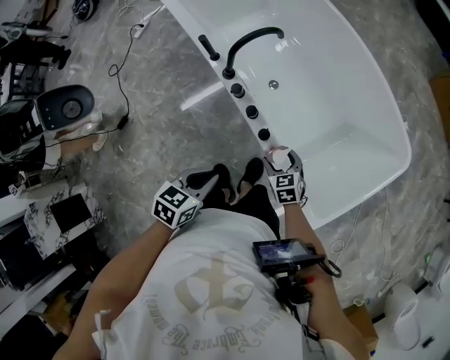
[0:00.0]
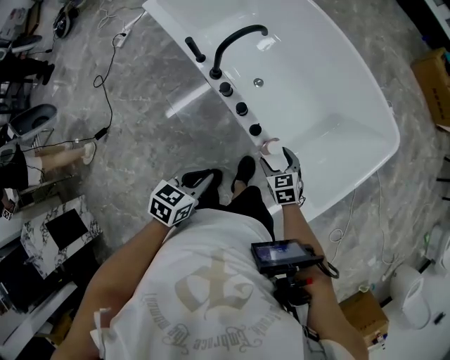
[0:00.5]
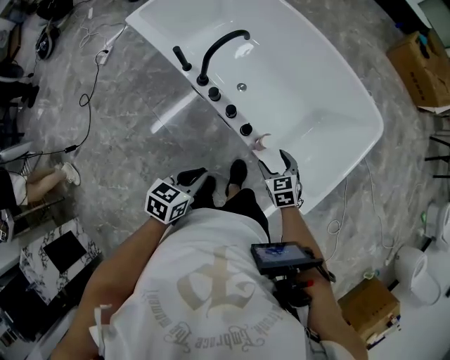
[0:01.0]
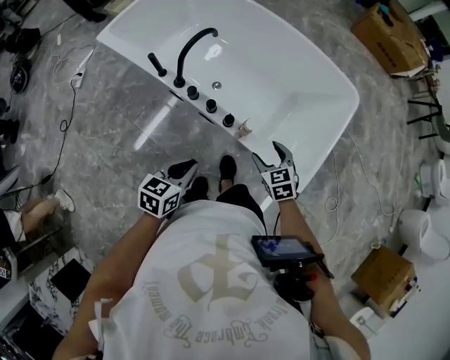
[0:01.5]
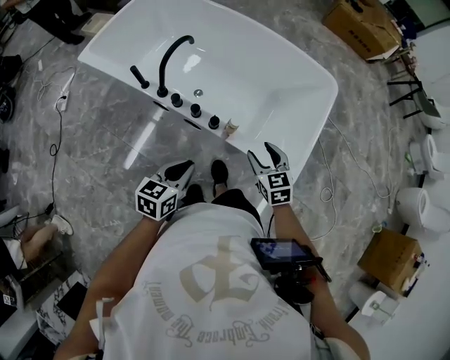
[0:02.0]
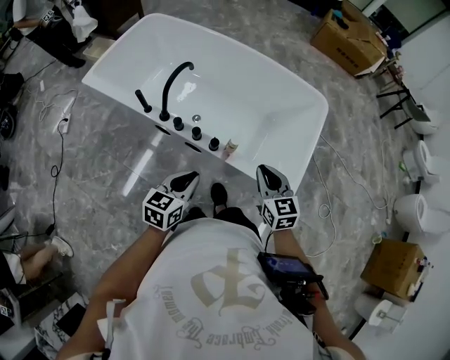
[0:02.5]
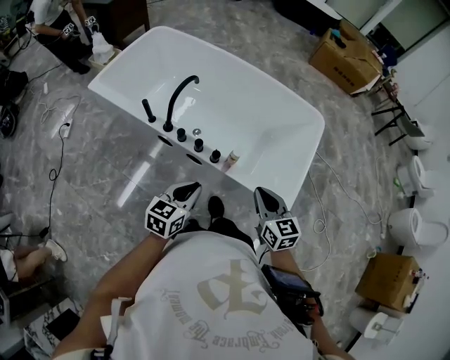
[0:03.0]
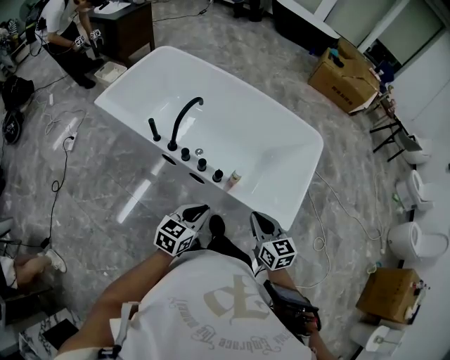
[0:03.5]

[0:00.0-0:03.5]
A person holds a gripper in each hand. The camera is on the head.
0:00.0 to 0:02.0: The left gripper shifts by roughly 5 cm, and changes its angle by approximately 20 degrees. Meanwhile the right gripper shifts roughly 20 cm upward, and changes its angle by approximately 30 degrees.
0:02.0 to 0:03.5: The right gripper goes roughly 15 cm backward and upward, and closes up, while the left gripper moves roughly 5 cm.

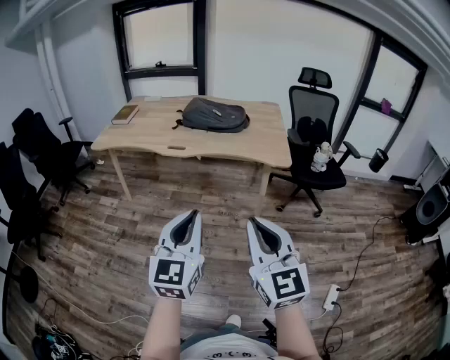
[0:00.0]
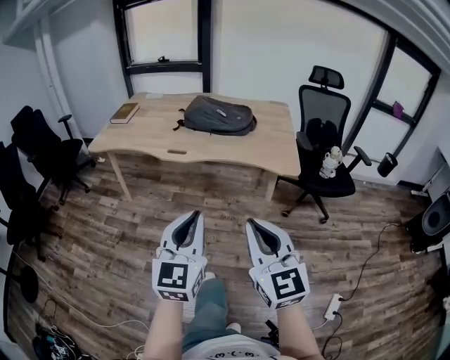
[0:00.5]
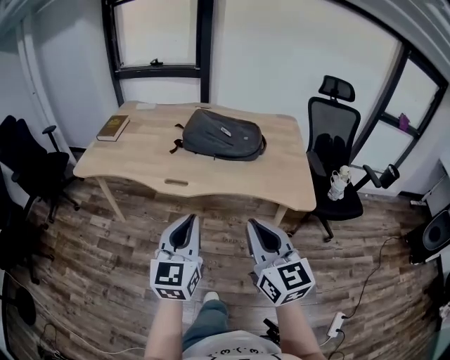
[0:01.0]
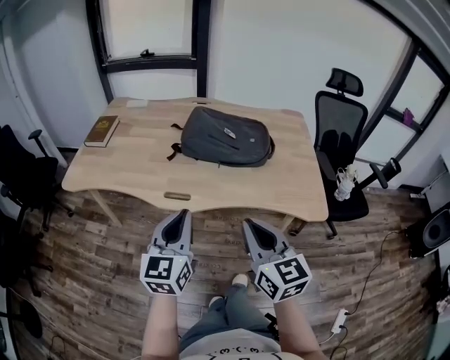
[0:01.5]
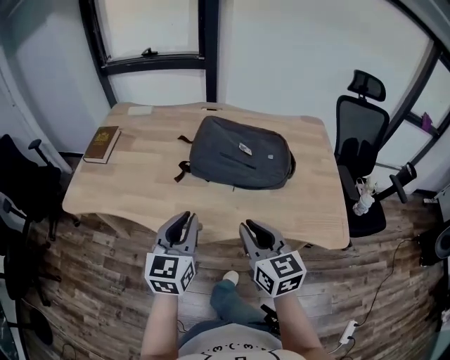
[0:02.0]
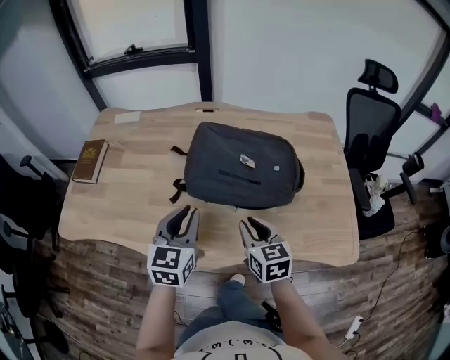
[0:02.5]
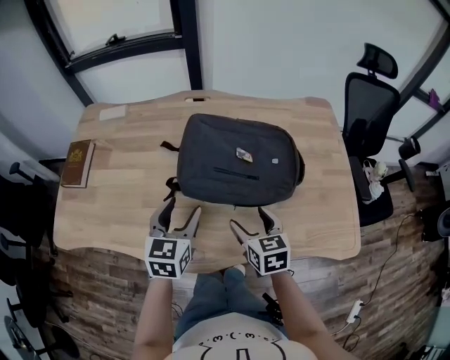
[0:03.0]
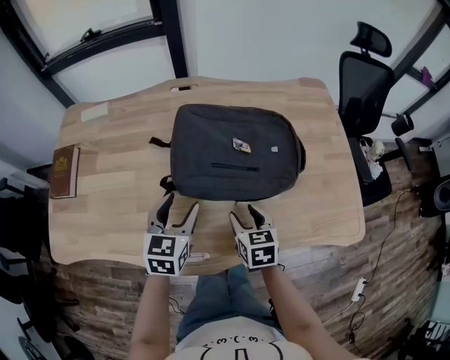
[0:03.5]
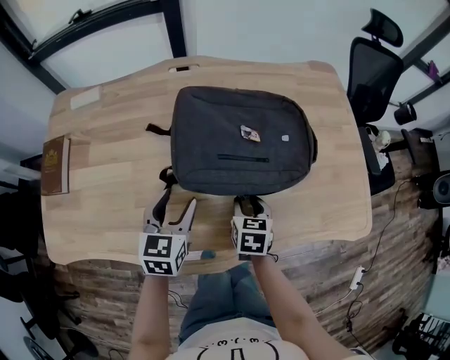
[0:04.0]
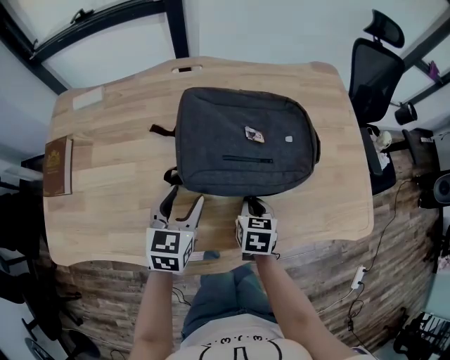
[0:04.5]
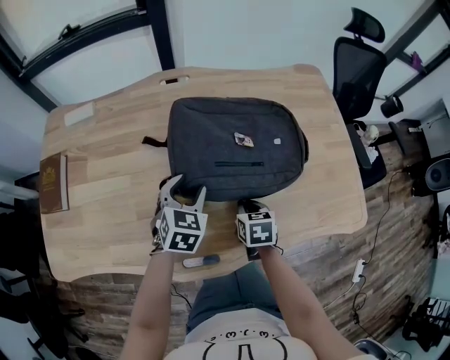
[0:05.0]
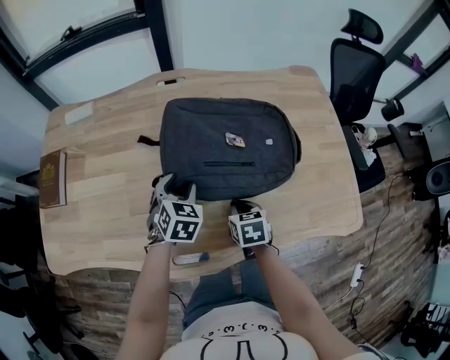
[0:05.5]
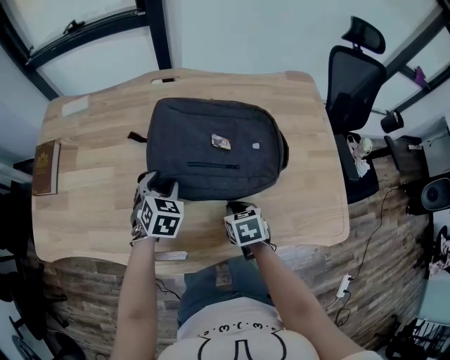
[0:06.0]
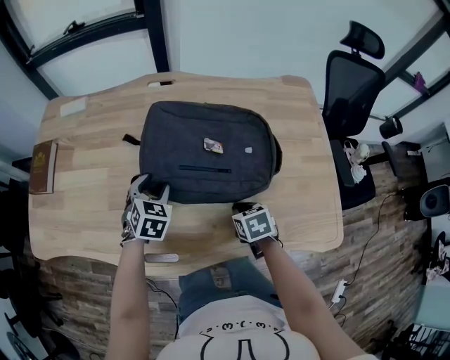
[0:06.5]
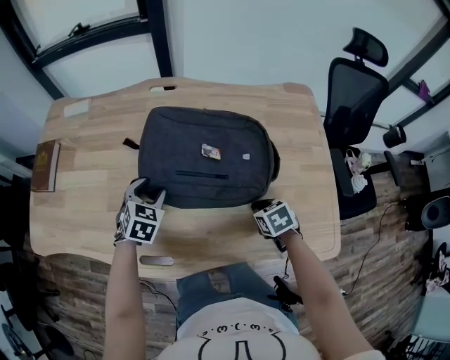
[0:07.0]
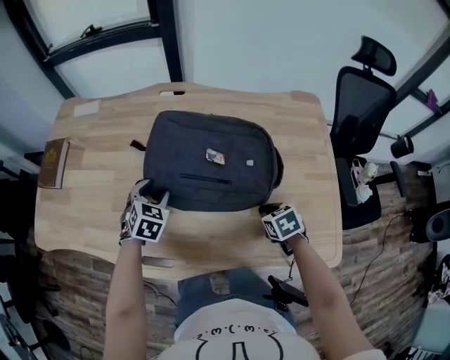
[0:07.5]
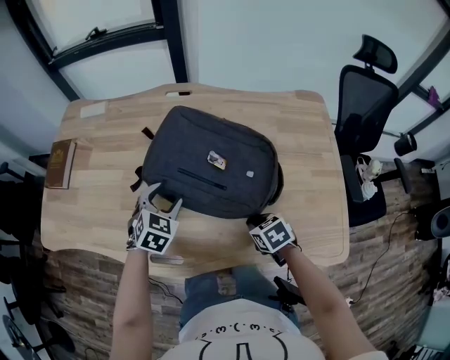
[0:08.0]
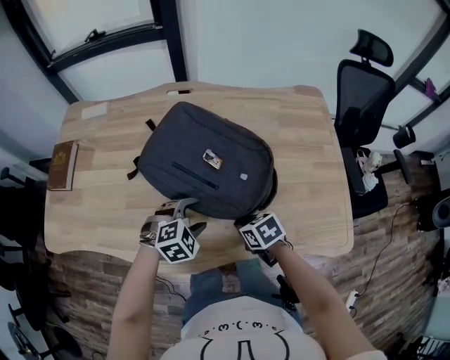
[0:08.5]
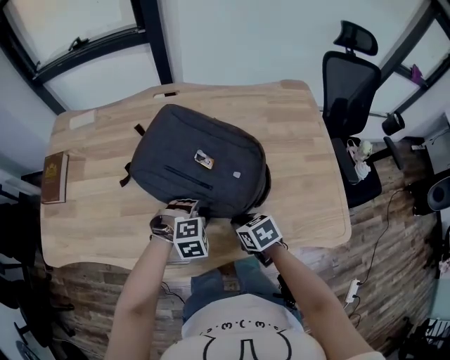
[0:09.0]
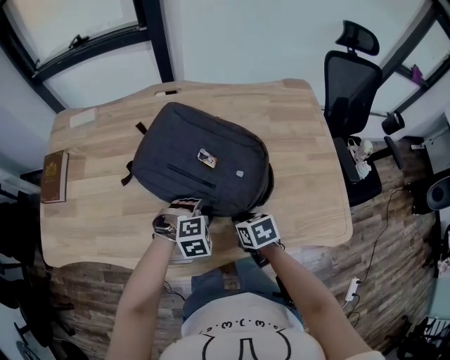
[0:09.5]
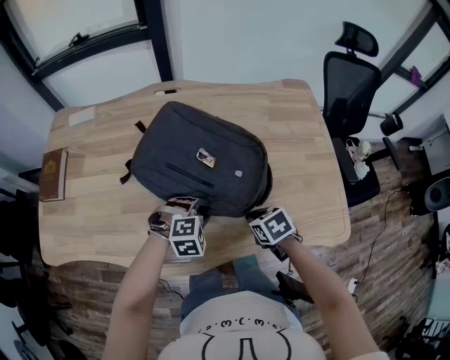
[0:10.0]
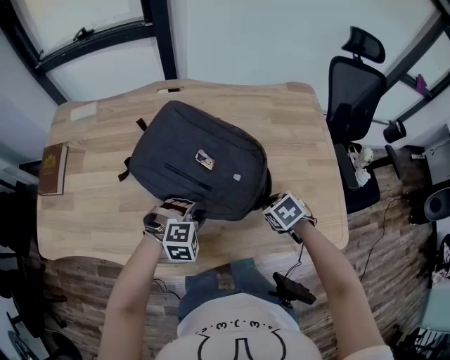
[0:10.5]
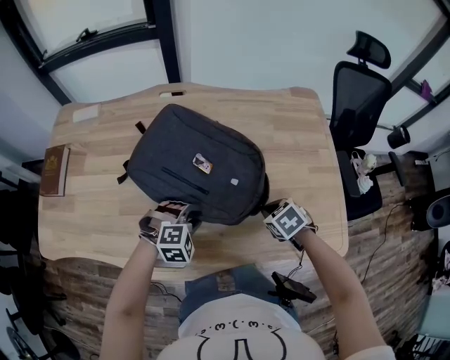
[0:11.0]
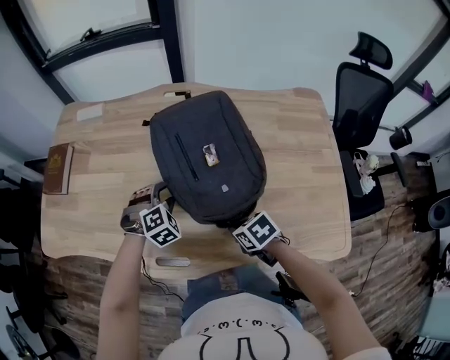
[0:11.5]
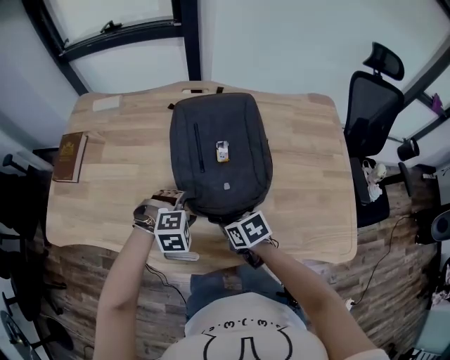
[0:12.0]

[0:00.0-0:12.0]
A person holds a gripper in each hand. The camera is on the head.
0:00.0 to 0:02.0: Both grippers are carried forward, about 60 cm. The right gripper rotates some 20 degrees.
0:02.0 to 0:04.0: The right gripper heads downward and forward, covering some 30 cm, points its fingers some 30 degrees further downward, and opens, then closes once more. Meanwhile the left gripper travels forward and downward by roughly 25 cm, turns by roughly 20 degrees, and opens its fingers.
0:04.0 to 0:06.0: The right gripper swivels some 20 degrees, and closes its fingers. The left gripper heads forward, covering roughly 5 cm, and turns by about 30 degrees.
0:06.0 to 0:08.0: The right gripper shifts some 5 cm to the right, and changes its angle by about 20 degrees.
0:08.0 to 0:10.0: The left gripper shifts some 15 cm to the right, backward and downward, twists approximately 50 degrees clockwise, seen from behind, and closes up.
0:10.0 to 0:12.0: The right gripper shifts by about 15 cm; the left gripper opens.

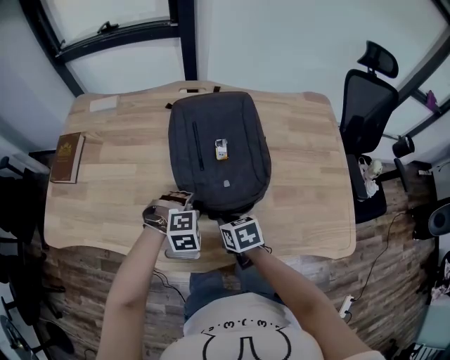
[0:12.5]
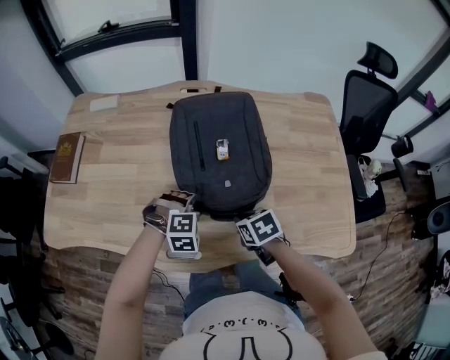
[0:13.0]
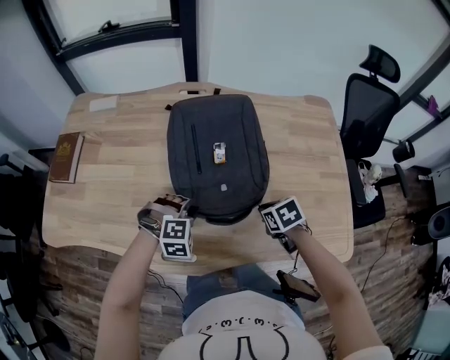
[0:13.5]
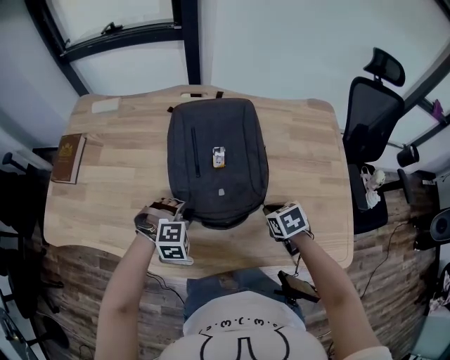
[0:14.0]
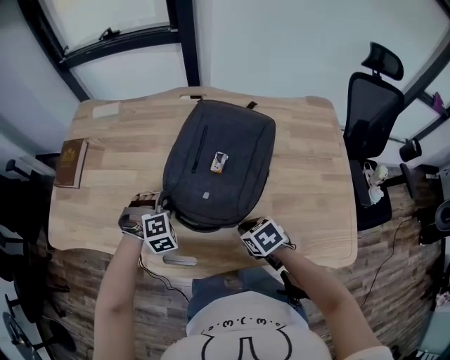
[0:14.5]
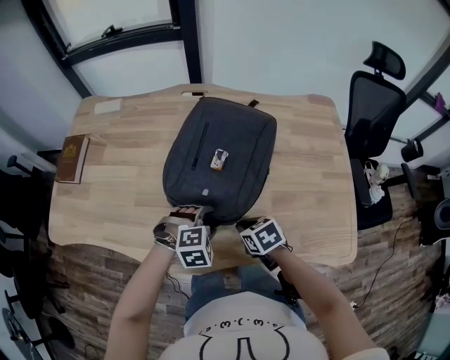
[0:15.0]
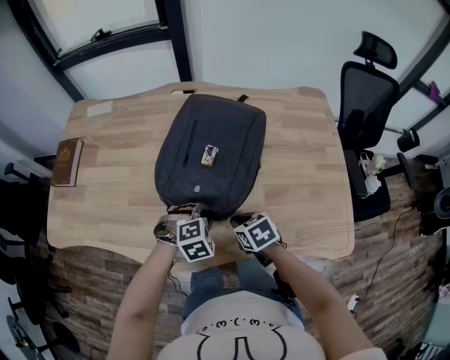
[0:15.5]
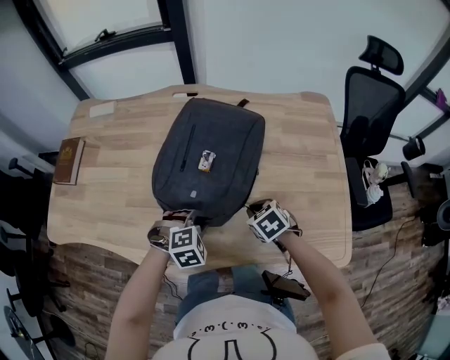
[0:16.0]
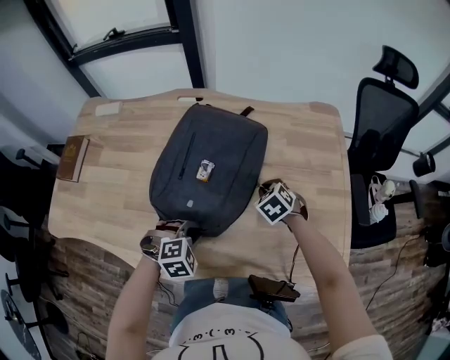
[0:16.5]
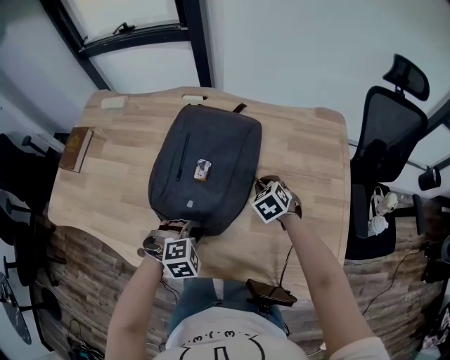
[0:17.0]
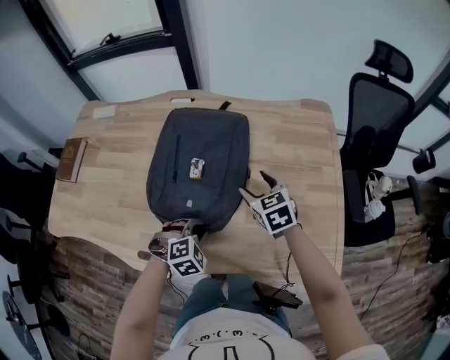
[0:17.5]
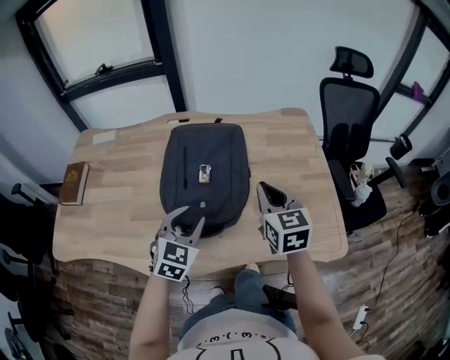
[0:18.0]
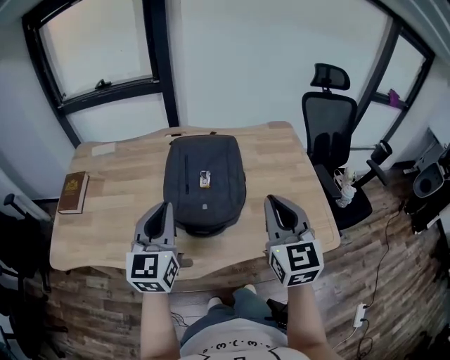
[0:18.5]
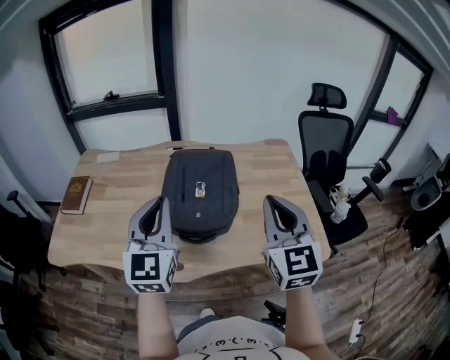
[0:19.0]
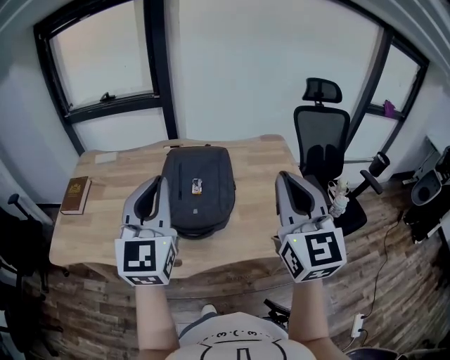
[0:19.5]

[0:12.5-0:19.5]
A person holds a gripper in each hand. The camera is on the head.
0:12.5 to 0:14.5: The left gripper shifts by about 10 cm, while the right gripper swivels about 20 degrees.
0:14.5 to 0:16.0: The left gripper shifts by roughly 15 cm, and opens, then closes again; the right gripper moves some 10 cm.
0:16.0 to 0:17.5: The left gripper moves some 5 cm. Meanwhile the right gripper heads forward and upward, covering about 15 cm, turns by some 30 degrees, and opens its fingers.
0:17.5 to 0:19.5: The left gripper goes some 40 cm upward, tips its fingers upward by approximately 70 degrees, and opens and closes again. The right gripper shifts approximately 50 cm upward and backward, tilts its fingers about 50 degrees upward, and closes.

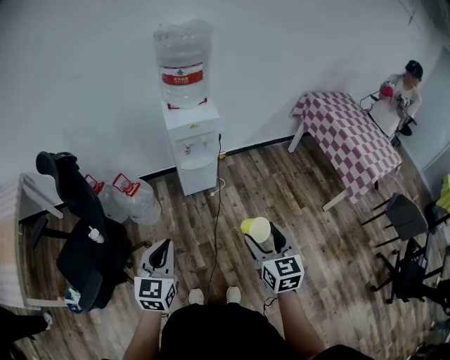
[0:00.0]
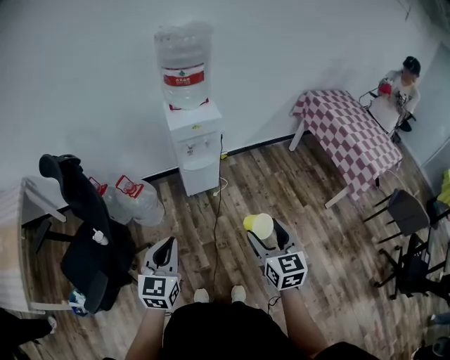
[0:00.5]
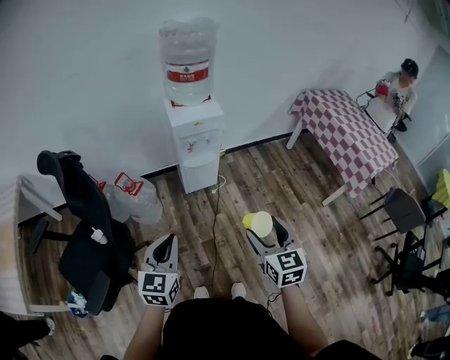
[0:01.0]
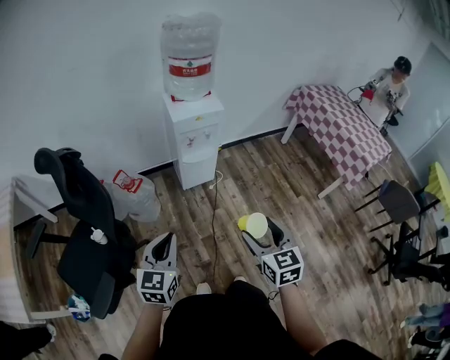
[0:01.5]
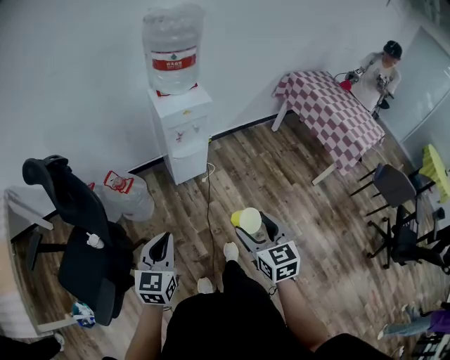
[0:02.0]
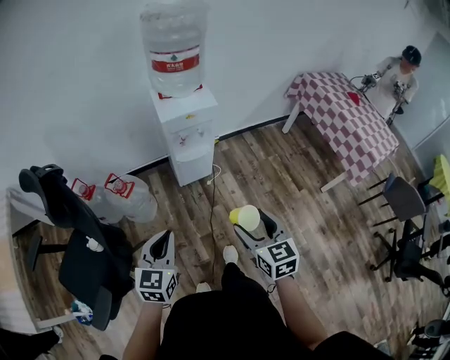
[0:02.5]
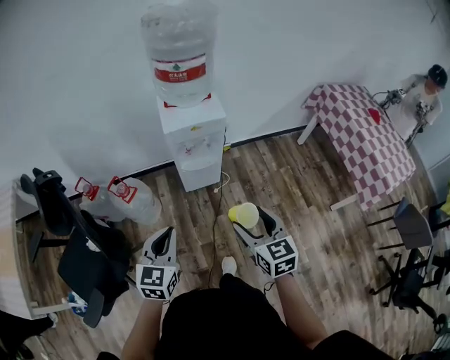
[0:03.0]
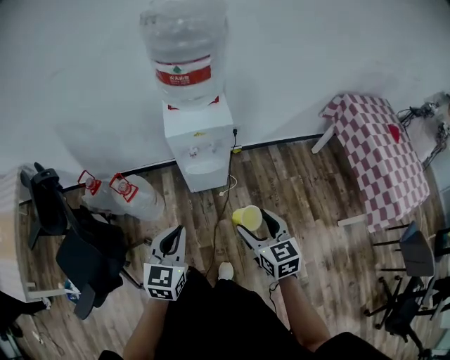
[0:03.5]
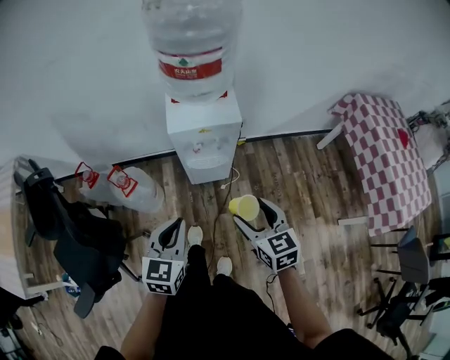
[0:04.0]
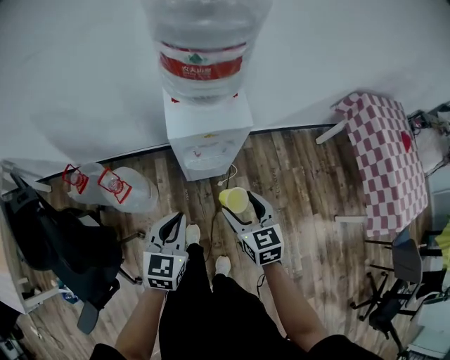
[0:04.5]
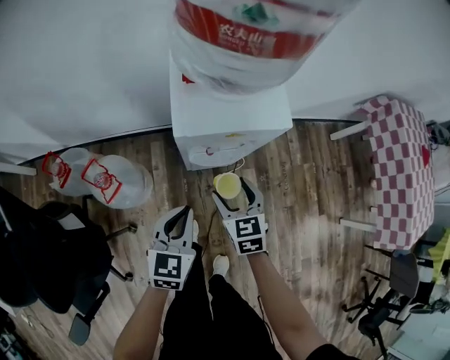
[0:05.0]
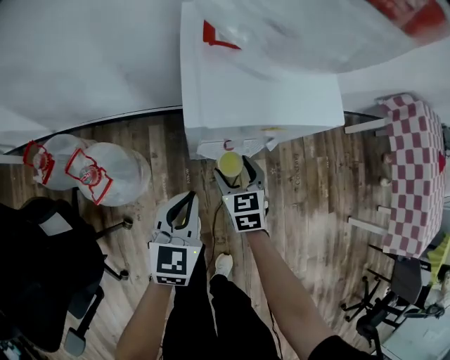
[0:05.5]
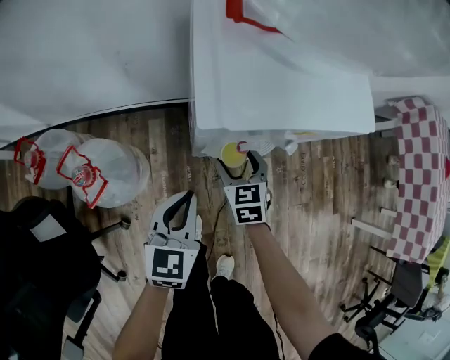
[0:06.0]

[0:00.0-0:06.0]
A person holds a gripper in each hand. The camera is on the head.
0:00.0 to 0:02.0: Both grippers move to the left, about 10 cm.
0:02.0 to 0:04.0: The right gripper heads forward, covering some 30 cm, and swivels some 20 degrees, while the left gripper moves forward and to the right, about 30 cm.
0:04.0 to 0:06.0: The two grippers go roughly 40 cm downward and forward.
